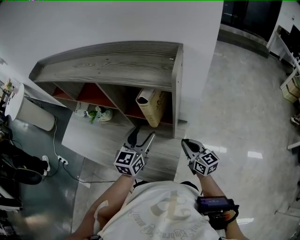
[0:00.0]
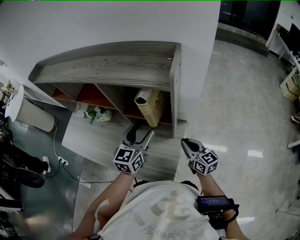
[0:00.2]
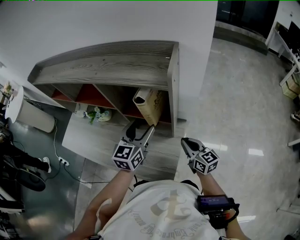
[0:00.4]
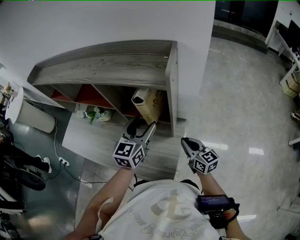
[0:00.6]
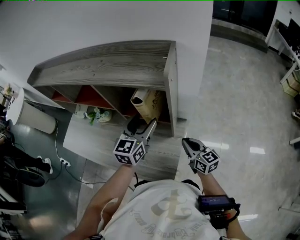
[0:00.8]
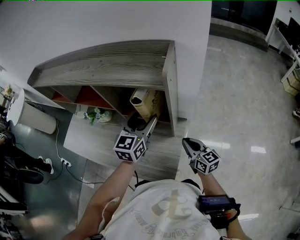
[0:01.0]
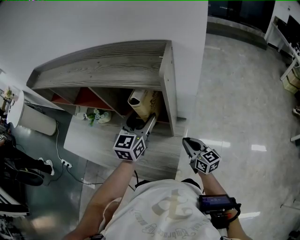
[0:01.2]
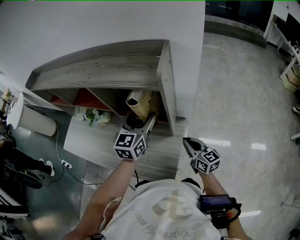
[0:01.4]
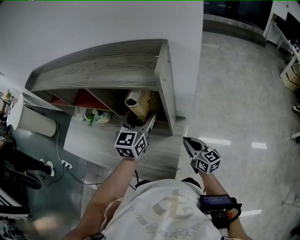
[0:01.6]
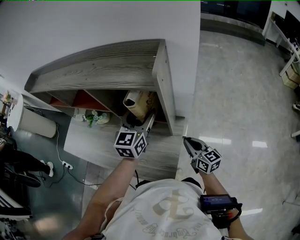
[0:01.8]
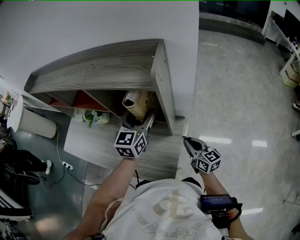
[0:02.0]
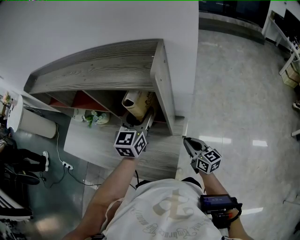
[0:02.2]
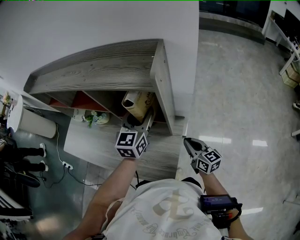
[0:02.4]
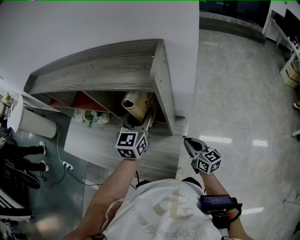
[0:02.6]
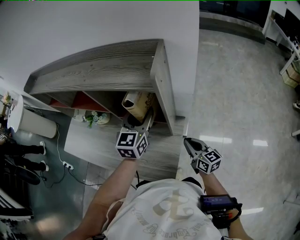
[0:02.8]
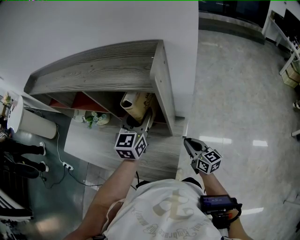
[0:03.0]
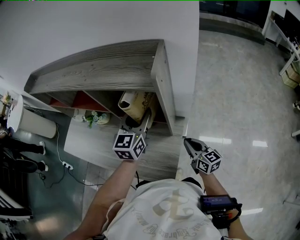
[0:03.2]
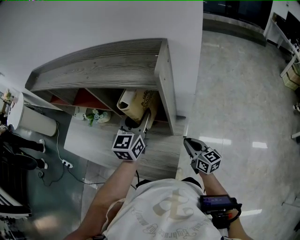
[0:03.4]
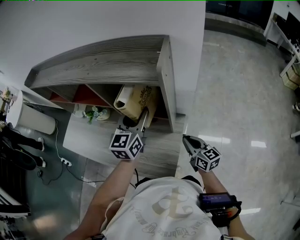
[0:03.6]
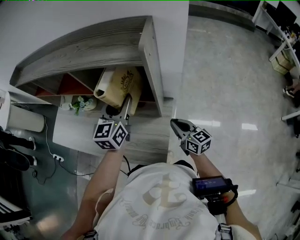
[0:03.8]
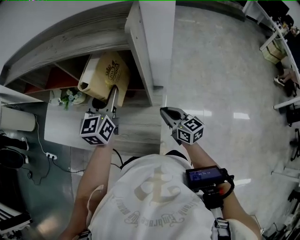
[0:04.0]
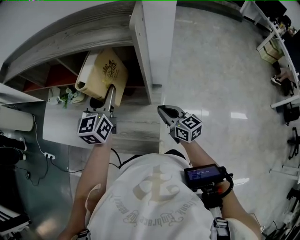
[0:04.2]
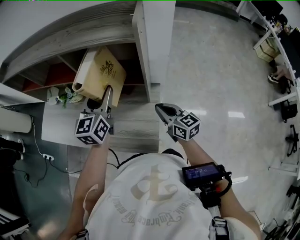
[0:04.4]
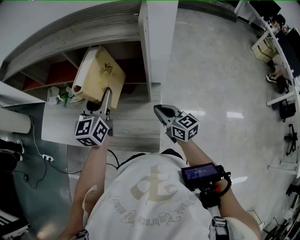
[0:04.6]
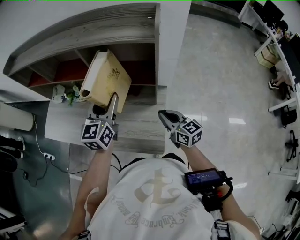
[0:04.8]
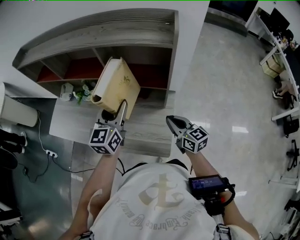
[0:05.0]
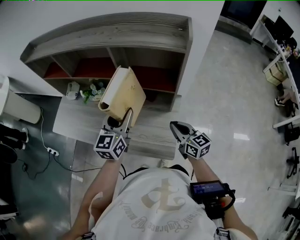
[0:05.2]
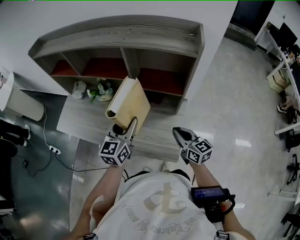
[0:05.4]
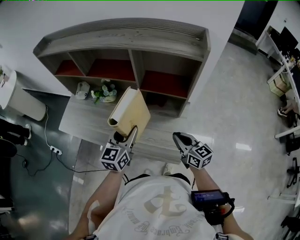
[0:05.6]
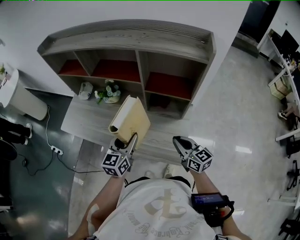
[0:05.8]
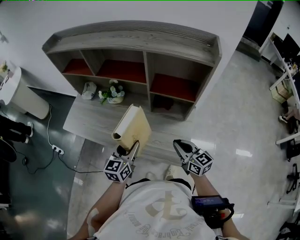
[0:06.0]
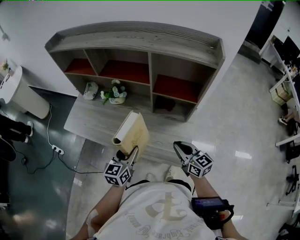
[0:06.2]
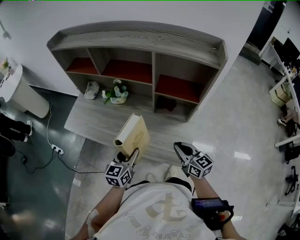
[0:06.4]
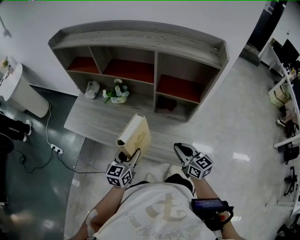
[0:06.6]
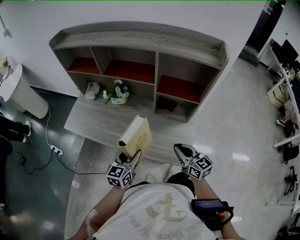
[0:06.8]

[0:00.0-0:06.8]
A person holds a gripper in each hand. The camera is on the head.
0.0 to 1.4 s: The left gripper shifts roughly 5 cm forward.
1.4 to 2.8 s: There are only small adjustments of the grippers.
2.8 to 4.0 s: The left gripper goes roughly 5 cm to the left.
4.0 to 5.4 s: The grippers both shift to the left and backward by roughly 15 cm.
5.4 to 6.8 s: The left gripper moves to the left, backward and downward, approximately 20 cm. The right gripper is displaced to the left by some 10 cm.

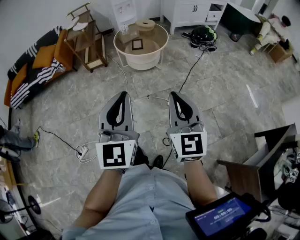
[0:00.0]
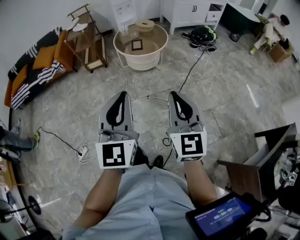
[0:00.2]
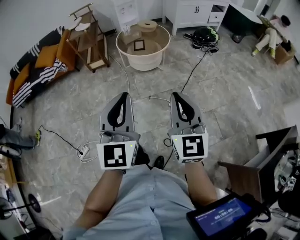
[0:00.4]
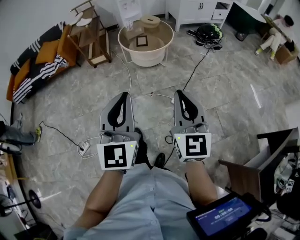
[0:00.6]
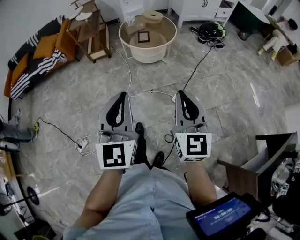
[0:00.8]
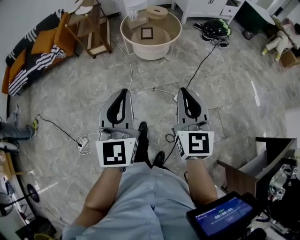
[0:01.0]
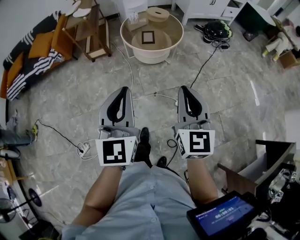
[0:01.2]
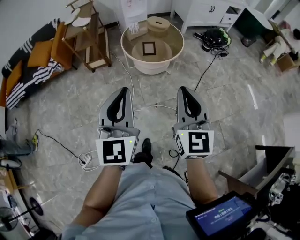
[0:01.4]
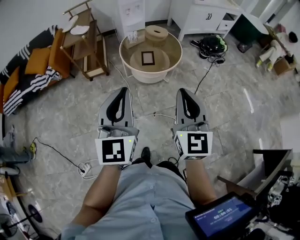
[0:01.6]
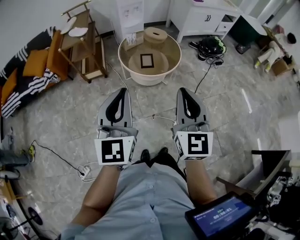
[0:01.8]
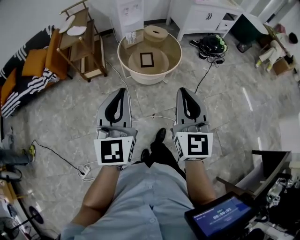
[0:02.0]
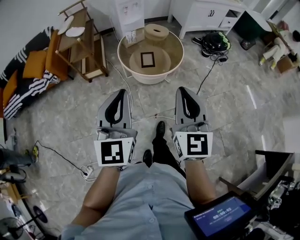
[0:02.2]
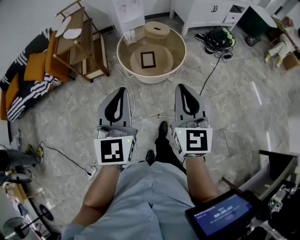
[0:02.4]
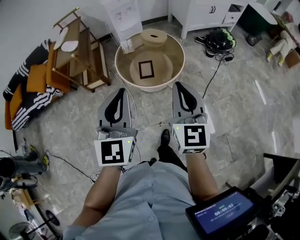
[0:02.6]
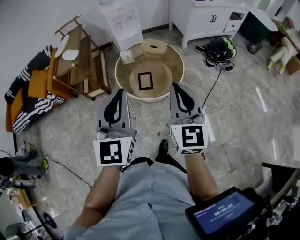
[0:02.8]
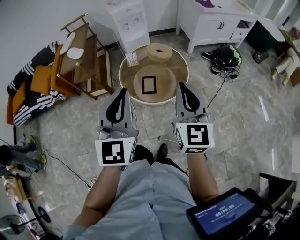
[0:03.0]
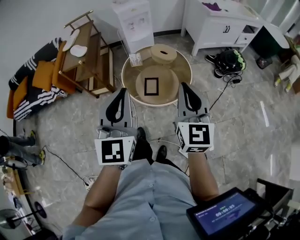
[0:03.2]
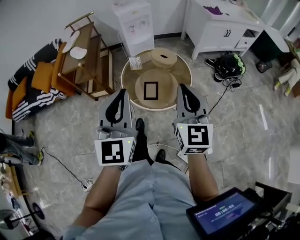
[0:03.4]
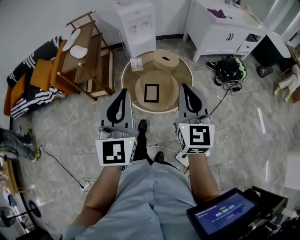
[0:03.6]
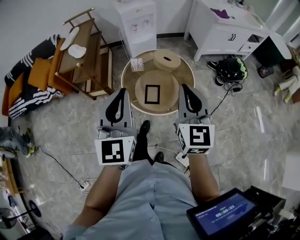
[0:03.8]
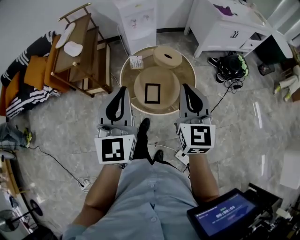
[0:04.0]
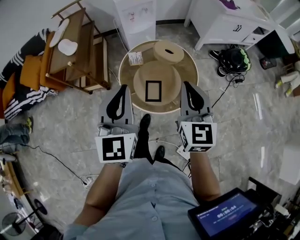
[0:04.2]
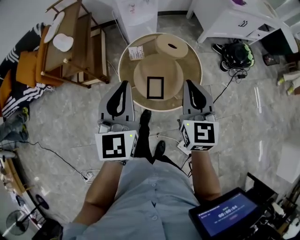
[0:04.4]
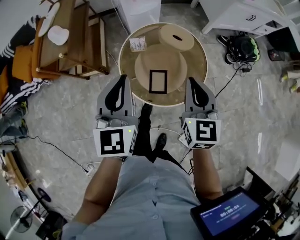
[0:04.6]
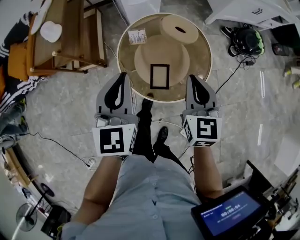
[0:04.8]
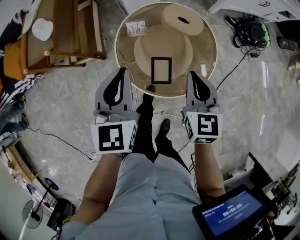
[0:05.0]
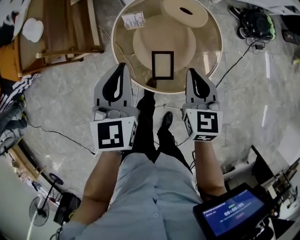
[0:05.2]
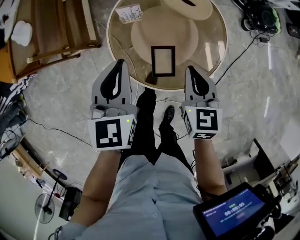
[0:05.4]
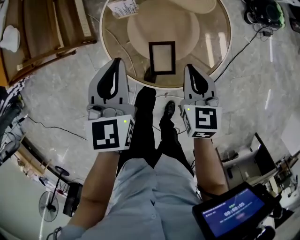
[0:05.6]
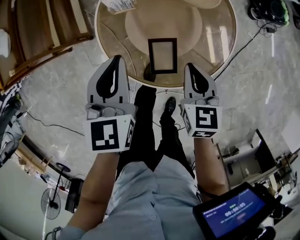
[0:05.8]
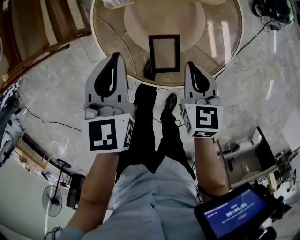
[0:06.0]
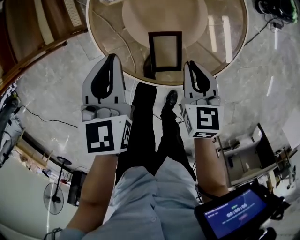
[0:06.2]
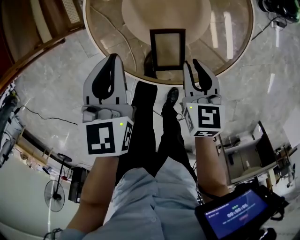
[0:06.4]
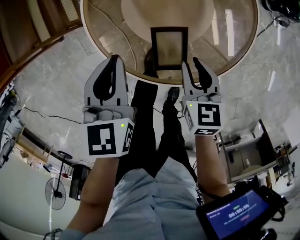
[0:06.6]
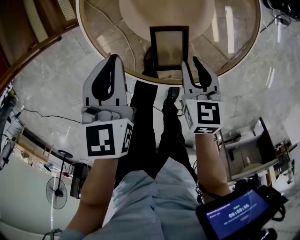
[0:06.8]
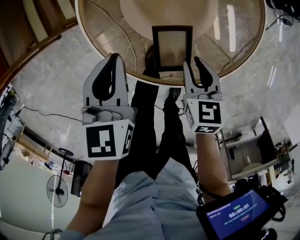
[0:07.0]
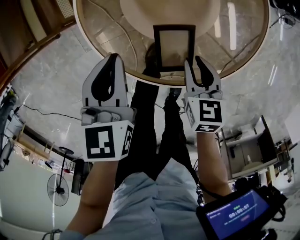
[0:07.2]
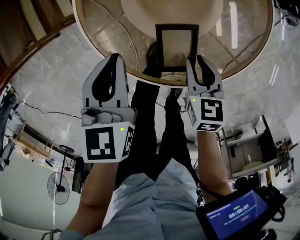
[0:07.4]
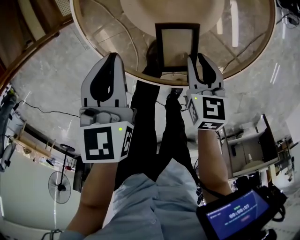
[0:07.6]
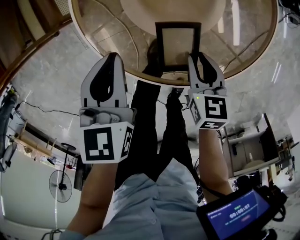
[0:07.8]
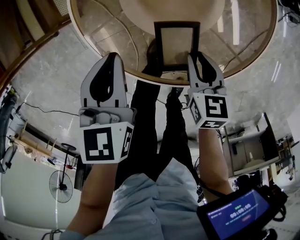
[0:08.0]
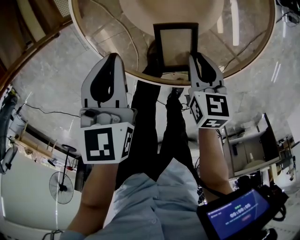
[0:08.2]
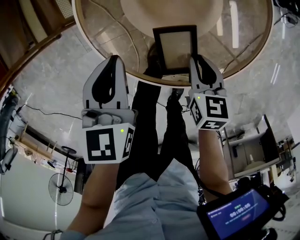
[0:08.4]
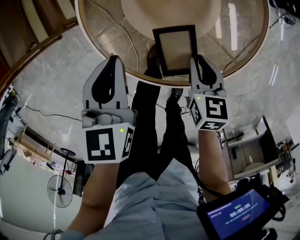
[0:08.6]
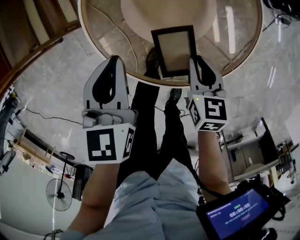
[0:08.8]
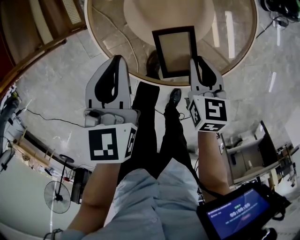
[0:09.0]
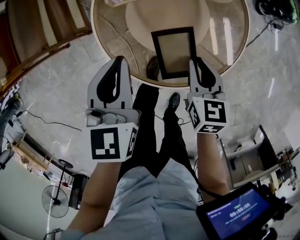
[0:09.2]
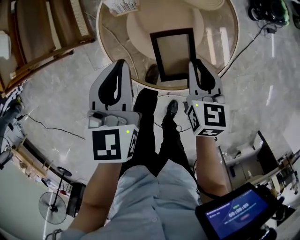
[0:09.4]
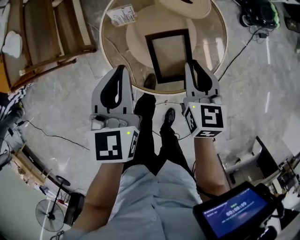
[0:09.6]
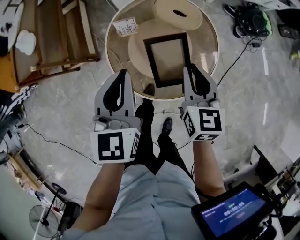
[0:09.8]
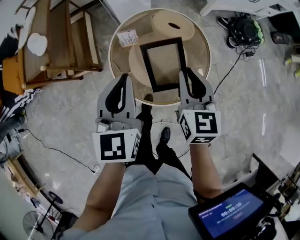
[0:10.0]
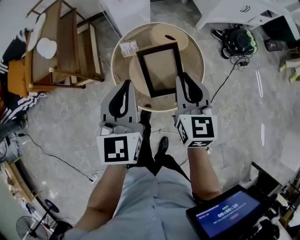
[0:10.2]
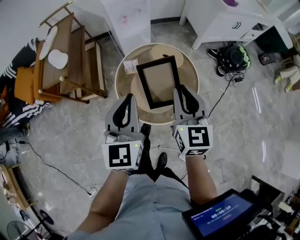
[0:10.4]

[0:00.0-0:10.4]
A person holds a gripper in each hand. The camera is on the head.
0.0 to 1.4 s: The left gripper goes about 30 cm forward and to the left, while the right gripper goes roughly 25 cm forward.
1.4 to 3.0 s: The grippers both shift forward by roughly 35 cm.
3.0 to 4.4 s: The two grippers go about 25 cm forward and downward.
4.4 to 6.0 s: The right gripper travels downward by approximately 35 cm, and tilts its fingers roughly 30 degrees downward. Meanwhile the left gripper travels downward and forward by approximately 35 cm, and turns by some 30 degrees.
6.0 to 7.4 s: Both grippers travel together downward, about 10 cm. The right gripper opens.
7.4 to 9.0 s: The grippers both shift upward by about 5 cm.
9.0 to 10.4 s: The two grippers go some 35 cm upward. The left gripper turns by about 30 degrees, while the right gripper points its fingers some 40 degrees further upward.

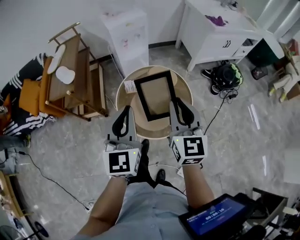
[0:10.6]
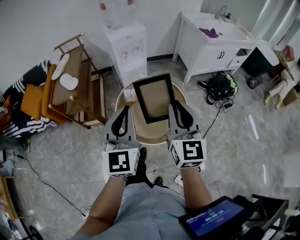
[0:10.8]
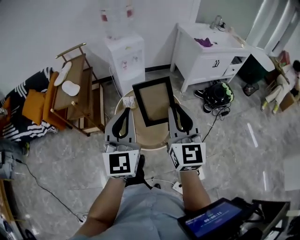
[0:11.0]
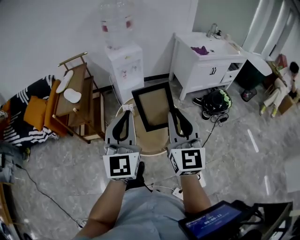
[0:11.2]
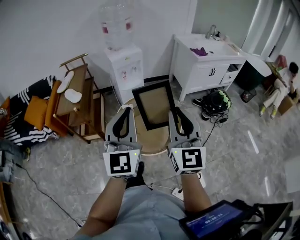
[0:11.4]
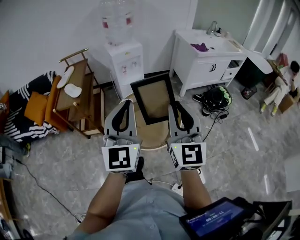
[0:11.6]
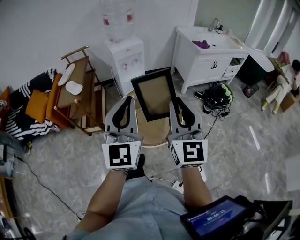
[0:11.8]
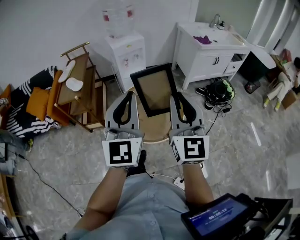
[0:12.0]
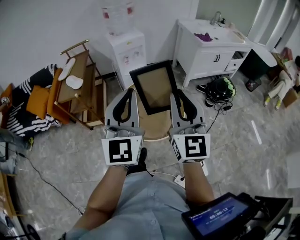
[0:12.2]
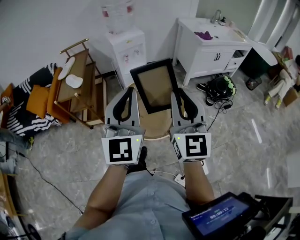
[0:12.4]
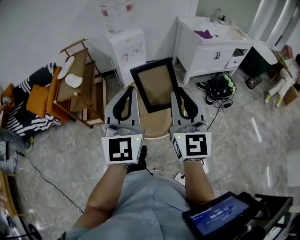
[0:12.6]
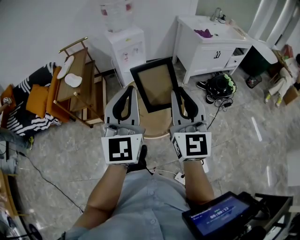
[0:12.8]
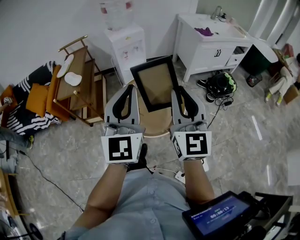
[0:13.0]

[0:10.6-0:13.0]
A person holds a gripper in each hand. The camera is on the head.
10.6 to 11.8 s: The grippers both shift upward and backward by about 20 cm.
11.8 to 13.0 s: The two grippers keep their place.

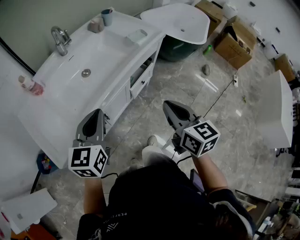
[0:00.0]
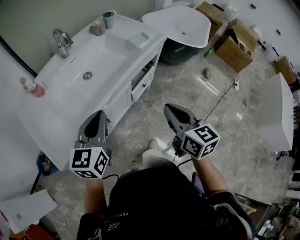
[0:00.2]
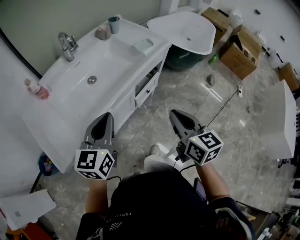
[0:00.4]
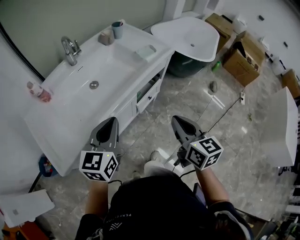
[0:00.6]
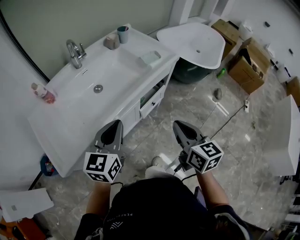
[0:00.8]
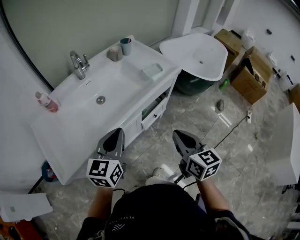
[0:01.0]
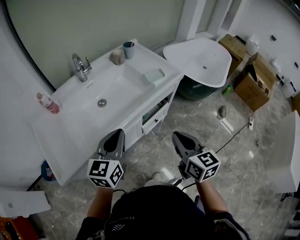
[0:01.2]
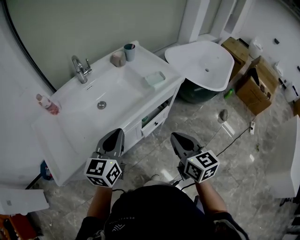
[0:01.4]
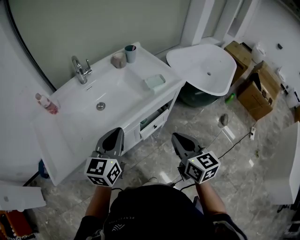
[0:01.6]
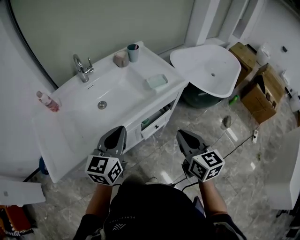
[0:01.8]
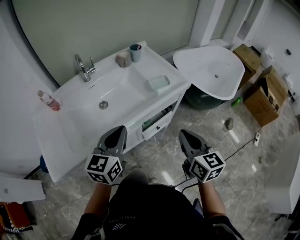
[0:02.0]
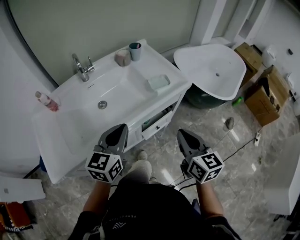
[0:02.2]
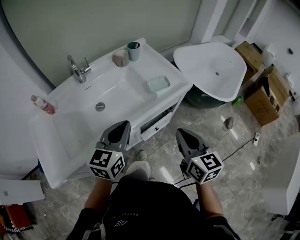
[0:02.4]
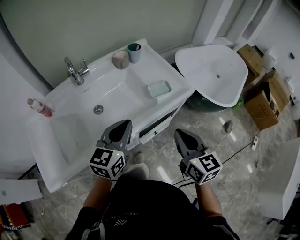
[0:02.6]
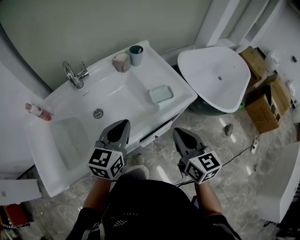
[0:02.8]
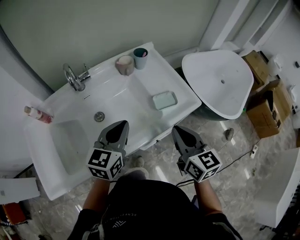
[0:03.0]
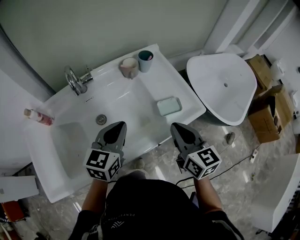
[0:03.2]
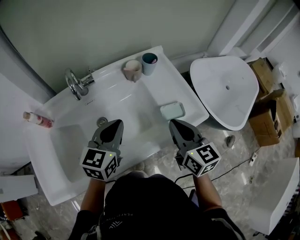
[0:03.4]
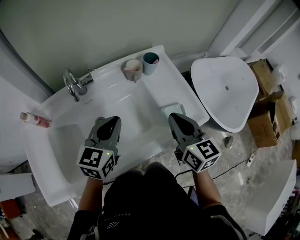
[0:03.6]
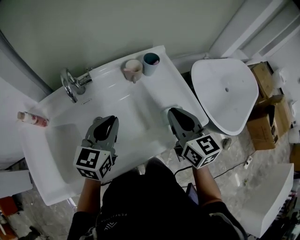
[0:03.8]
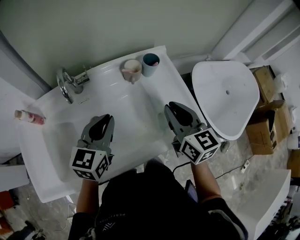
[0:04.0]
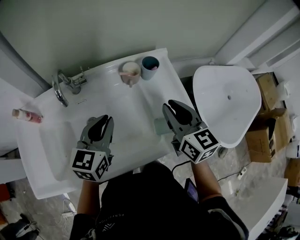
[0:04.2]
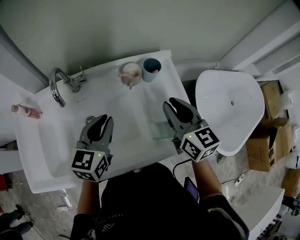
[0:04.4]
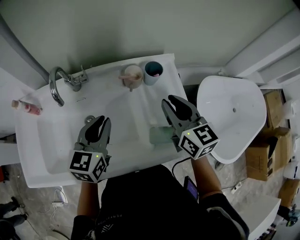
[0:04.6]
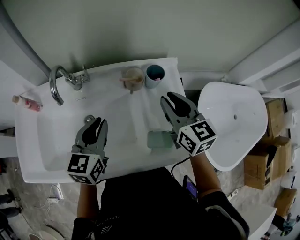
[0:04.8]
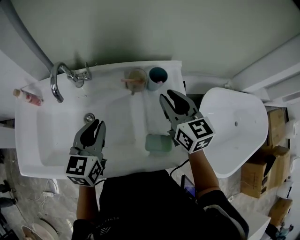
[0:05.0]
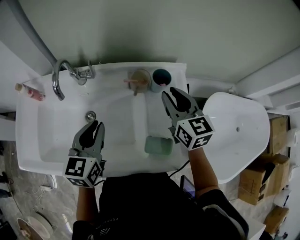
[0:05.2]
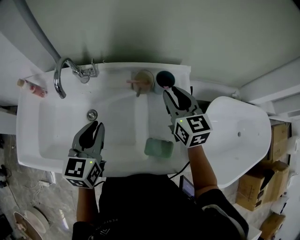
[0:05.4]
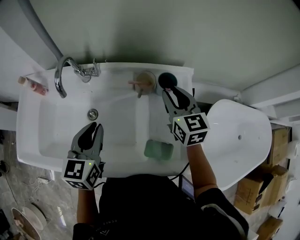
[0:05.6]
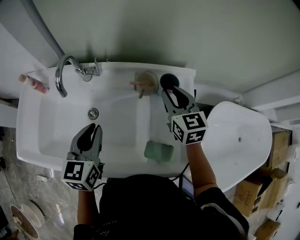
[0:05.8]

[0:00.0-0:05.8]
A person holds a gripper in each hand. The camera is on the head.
0.0 to 1.4 s: The two grippers go approximately 10 cm forward and to the right.
1.4 to 2.8 s: Both grippers move forward, roughly 15 cm.
2.8 to 4.4 s: The left gripper is displaced forward by roughly 15 cm, and rotates some 20 degrees. The right gripper shifts about 30 cm forward, and turns by some 20 degrees.
4.4 to 5.8 s: The right gripper travels forward and downward by roughly 15 cm. The left gripper swivels about 30 degrees.
